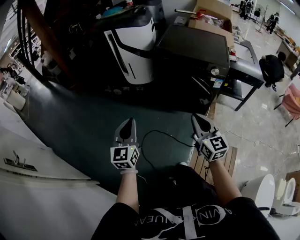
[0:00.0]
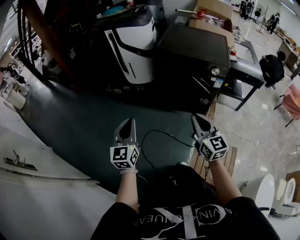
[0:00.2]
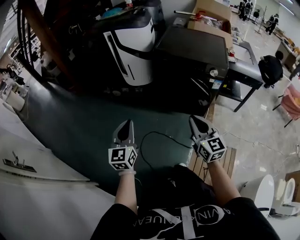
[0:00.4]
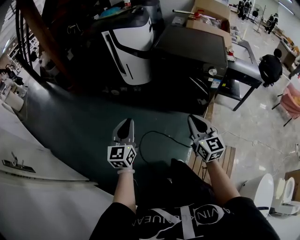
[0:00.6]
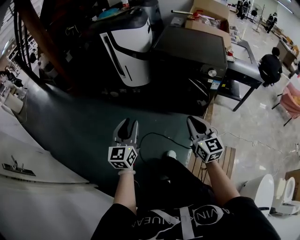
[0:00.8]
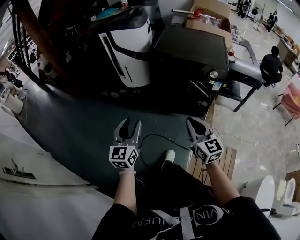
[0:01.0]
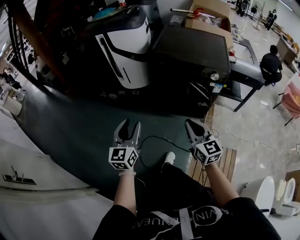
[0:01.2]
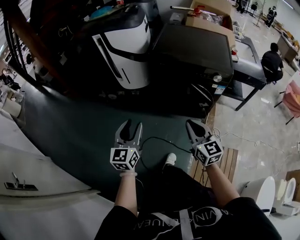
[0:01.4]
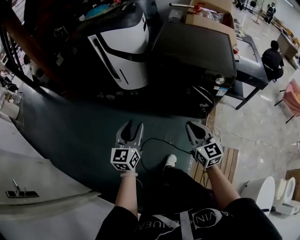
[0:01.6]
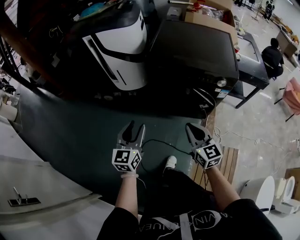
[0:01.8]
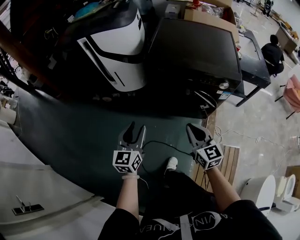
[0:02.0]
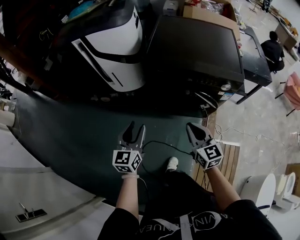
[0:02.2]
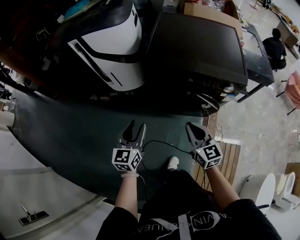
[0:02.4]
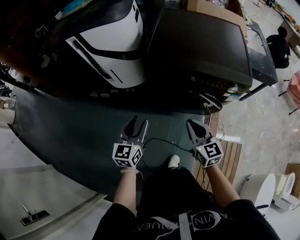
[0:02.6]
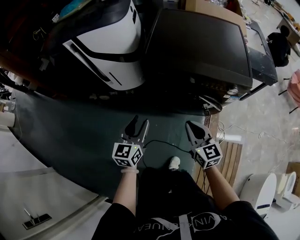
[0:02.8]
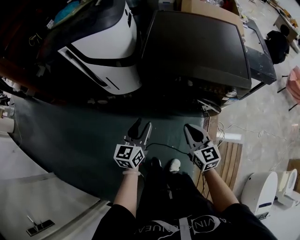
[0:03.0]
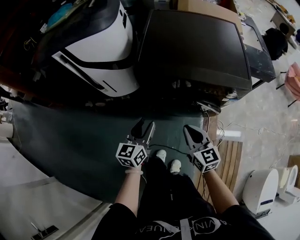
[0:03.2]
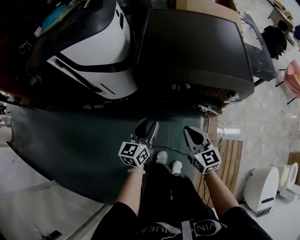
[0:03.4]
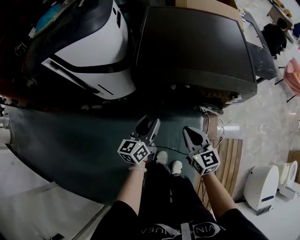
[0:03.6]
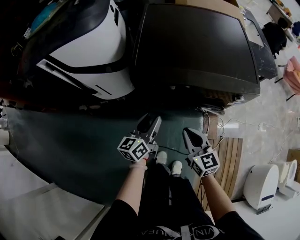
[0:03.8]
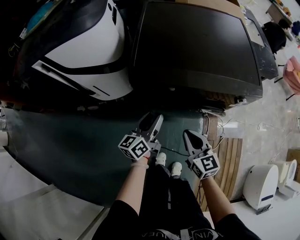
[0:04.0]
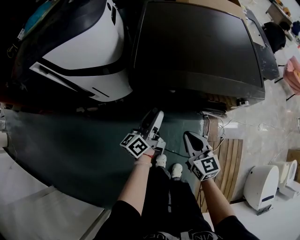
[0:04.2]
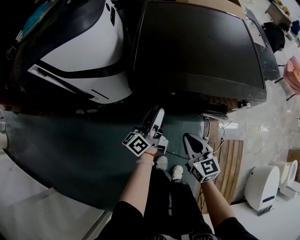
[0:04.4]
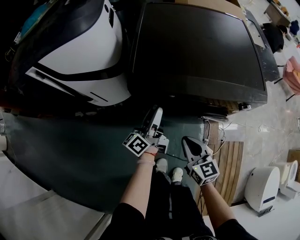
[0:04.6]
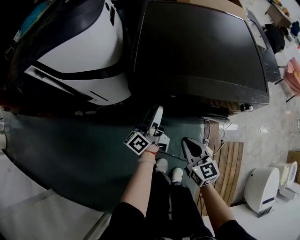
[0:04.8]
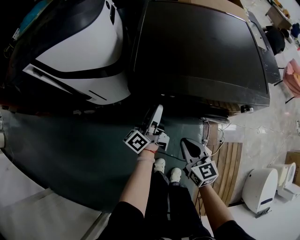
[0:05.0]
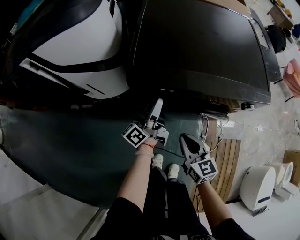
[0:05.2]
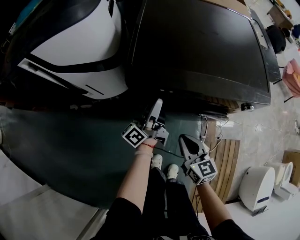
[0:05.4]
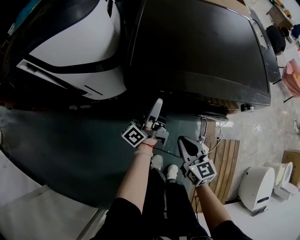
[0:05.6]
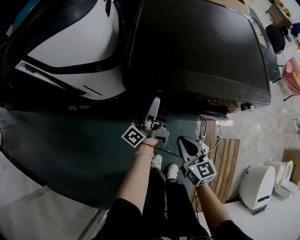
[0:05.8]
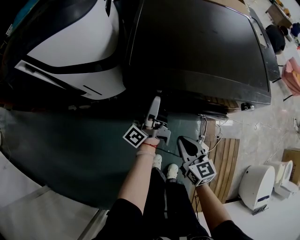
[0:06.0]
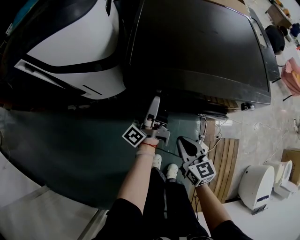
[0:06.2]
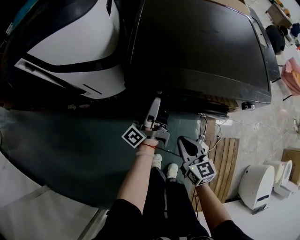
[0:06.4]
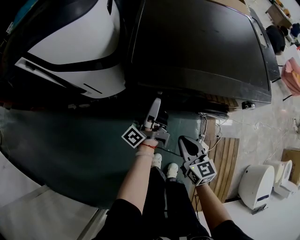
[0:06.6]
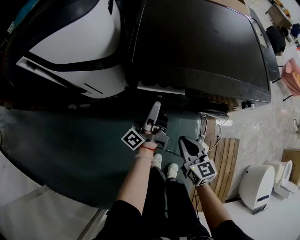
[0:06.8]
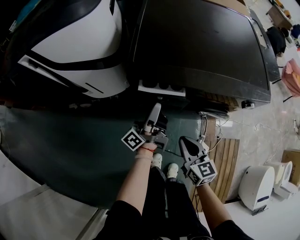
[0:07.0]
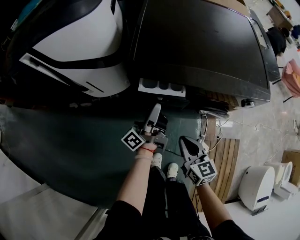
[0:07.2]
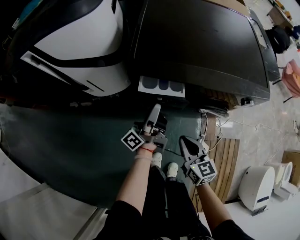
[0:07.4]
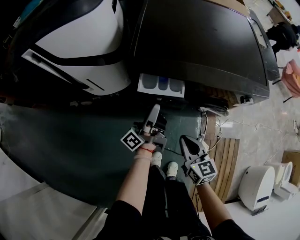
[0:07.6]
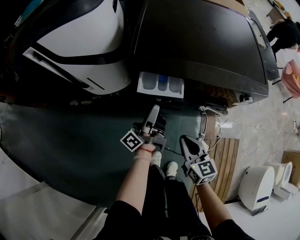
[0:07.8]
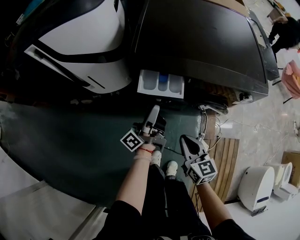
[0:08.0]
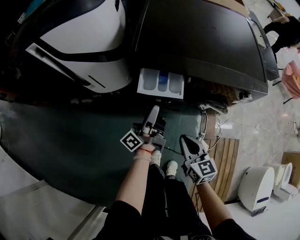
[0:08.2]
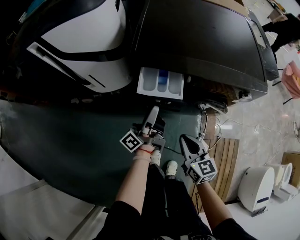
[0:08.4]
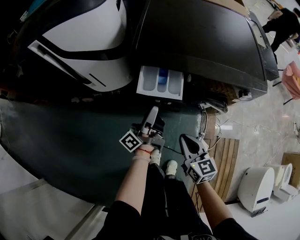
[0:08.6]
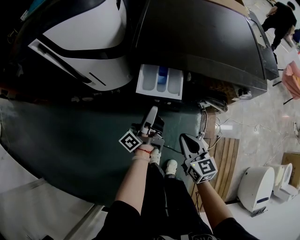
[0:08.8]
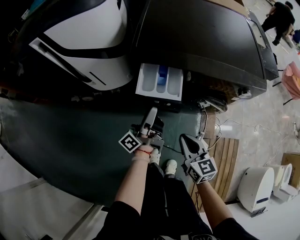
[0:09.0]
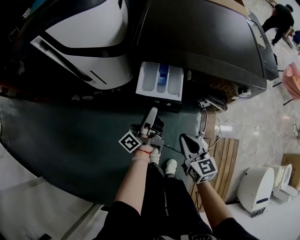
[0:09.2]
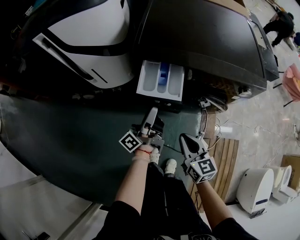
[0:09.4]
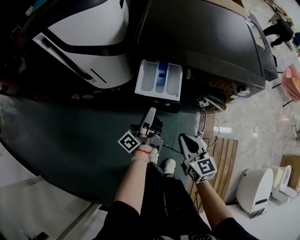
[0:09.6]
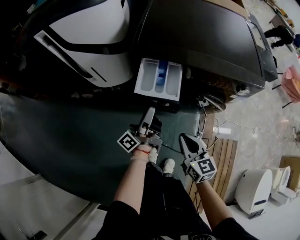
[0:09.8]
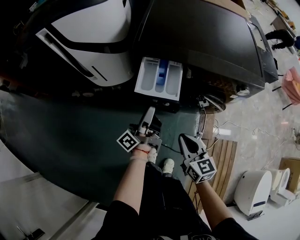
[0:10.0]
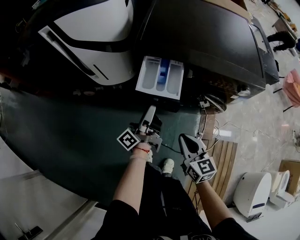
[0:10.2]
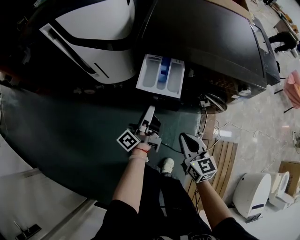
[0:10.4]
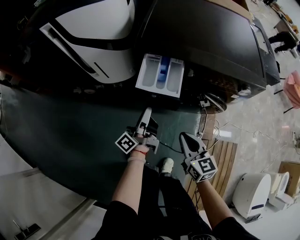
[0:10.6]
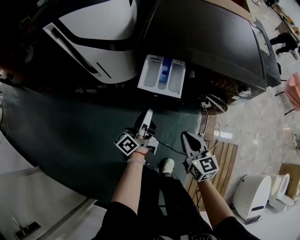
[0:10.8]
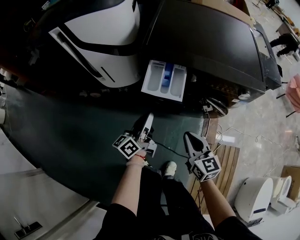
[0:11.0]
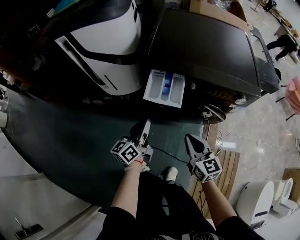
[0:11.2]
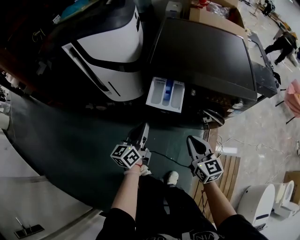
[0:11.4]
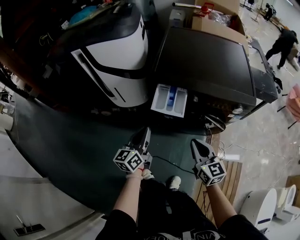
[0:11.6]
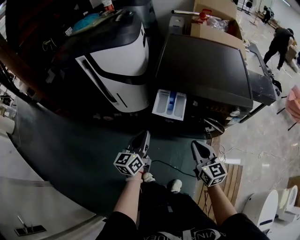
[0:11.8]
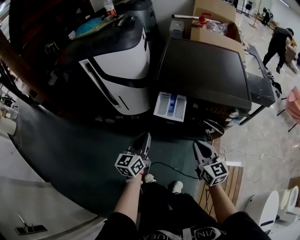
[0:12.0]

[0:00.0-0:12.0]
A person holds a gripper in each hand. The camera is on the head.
0:00.0 to 0:01.6: The left gripper travels forward by approximately 15 cm, and opens, while the right gripper travels forward and downward by approximately 15 cm.
0:01.6 to 0:03.0: The left gripper moves forward, some 20 cm. The right gripper shifts some 20 cm forward and downward.
0:03.0 to 0:04.4: The right gripper travels downward and forward by some 10 cm. Meanwhile the left gripper goes roughly 20 cm forward and downward, and twists some 40 degrees counterclockwise, seen from behind.
0:04.4 to 0:06.0: The left gripper turns by some 30 degrees.
0:06.0 to 0:07.6: The left gripper shifts some 5 cm backward.
0:07.6 to 0:09.0: The left gripper goes some 5 cm backward.
0:09.0 to 0:10.4: The grippers move only a little.
0:10.4 to 0:12.0: The right gripper is displaced upward by approximately 15 cm. The left gripper heads upward, to the left and backward, covering approximately 15 cm, and twists about 50 degrees clockwise, seen from behind.

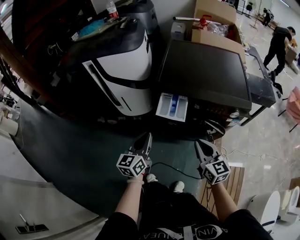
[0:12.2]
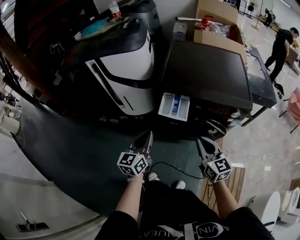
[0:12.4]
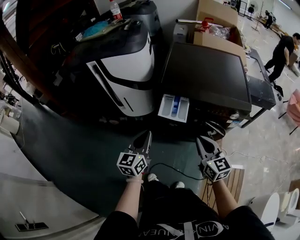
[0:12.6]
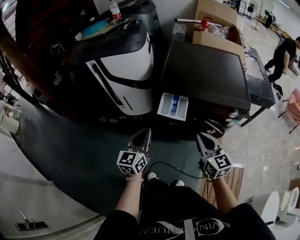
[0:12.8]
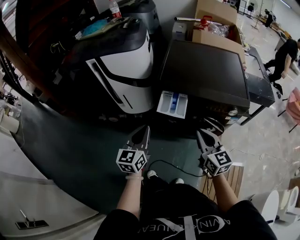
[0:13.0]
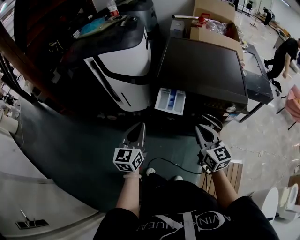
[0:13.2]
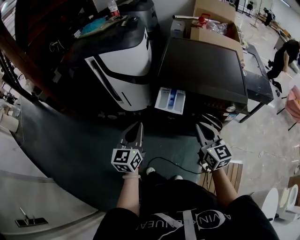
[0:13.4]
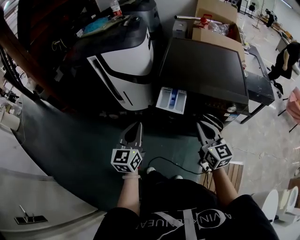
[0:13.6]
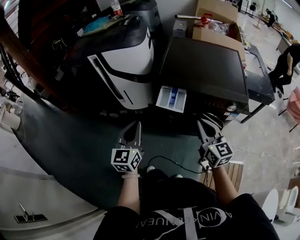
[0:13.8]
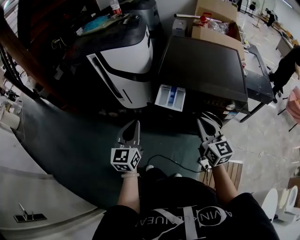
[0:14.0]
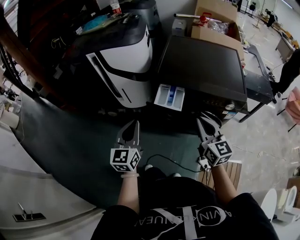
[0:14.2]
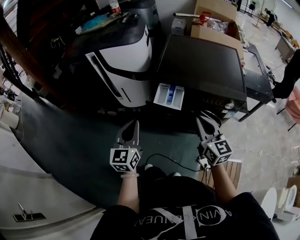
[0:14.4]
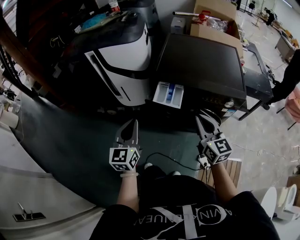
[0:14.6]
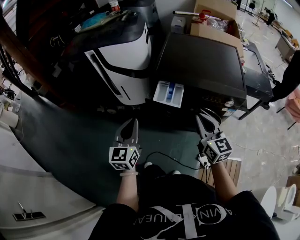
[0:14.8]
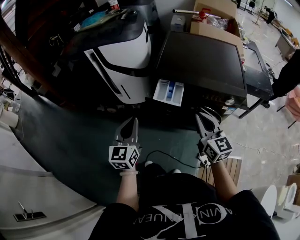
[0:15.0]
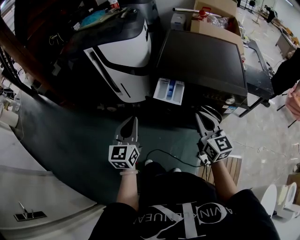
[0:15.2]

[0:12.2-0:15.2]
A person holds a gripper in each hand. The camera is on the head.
0:12.2 to 0:13.8: The grippers both shift upward by about 5 cm.
0:13.8 to 0:15.2: Neither gripper changes place.

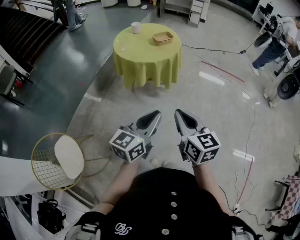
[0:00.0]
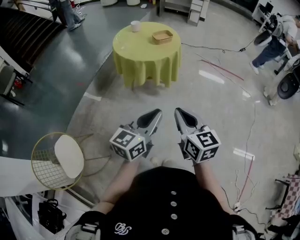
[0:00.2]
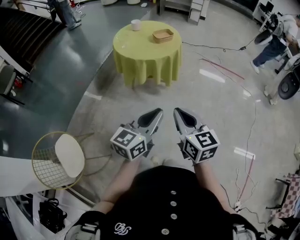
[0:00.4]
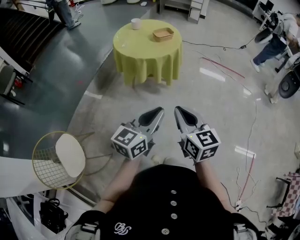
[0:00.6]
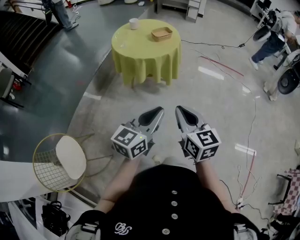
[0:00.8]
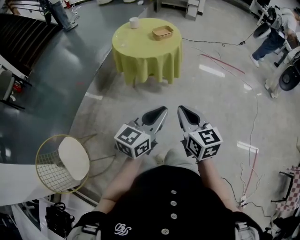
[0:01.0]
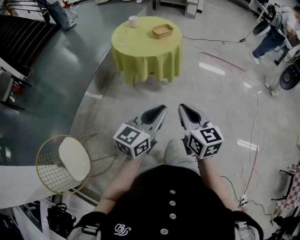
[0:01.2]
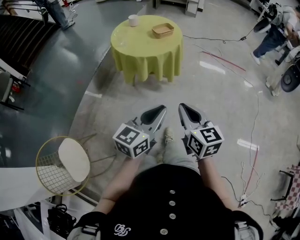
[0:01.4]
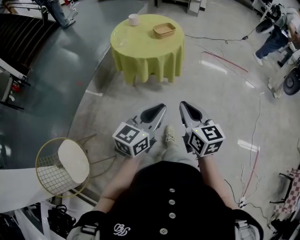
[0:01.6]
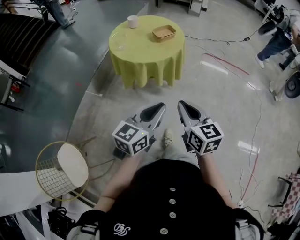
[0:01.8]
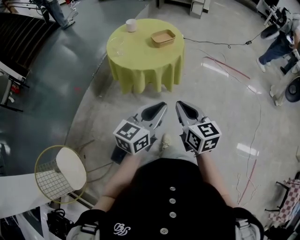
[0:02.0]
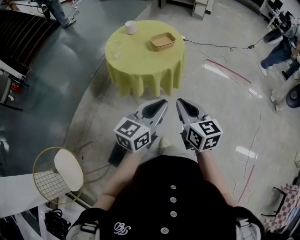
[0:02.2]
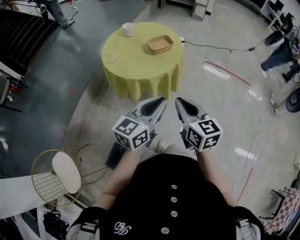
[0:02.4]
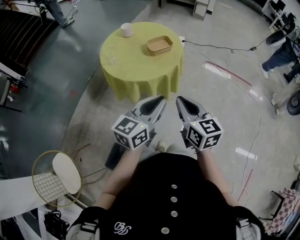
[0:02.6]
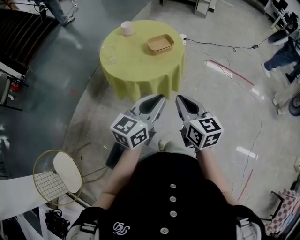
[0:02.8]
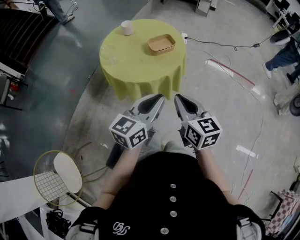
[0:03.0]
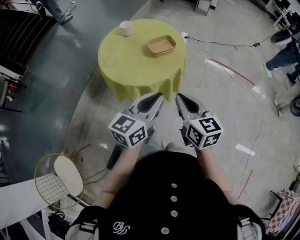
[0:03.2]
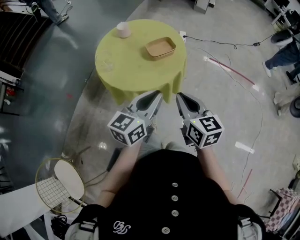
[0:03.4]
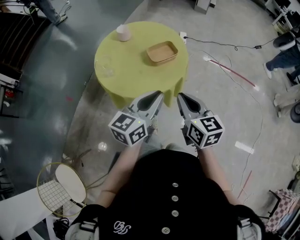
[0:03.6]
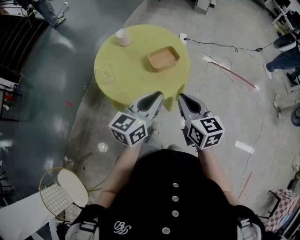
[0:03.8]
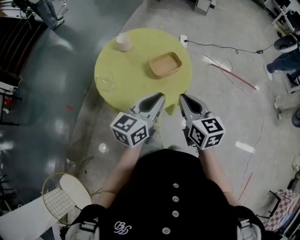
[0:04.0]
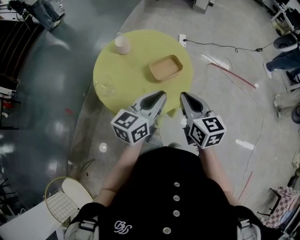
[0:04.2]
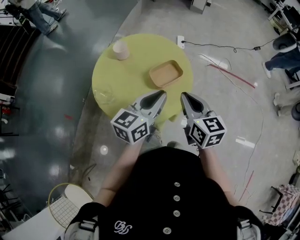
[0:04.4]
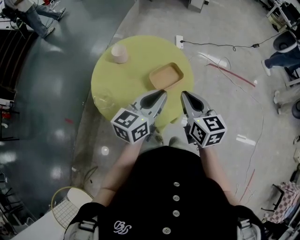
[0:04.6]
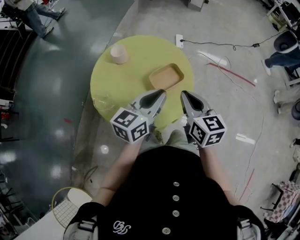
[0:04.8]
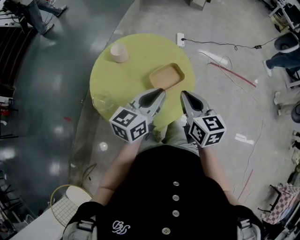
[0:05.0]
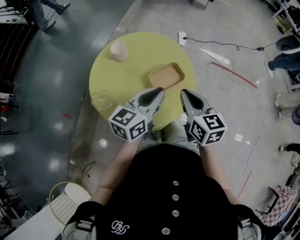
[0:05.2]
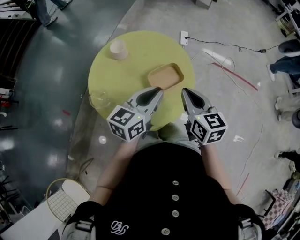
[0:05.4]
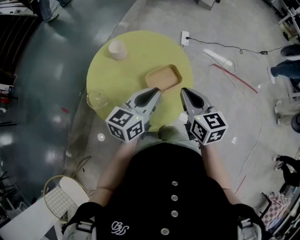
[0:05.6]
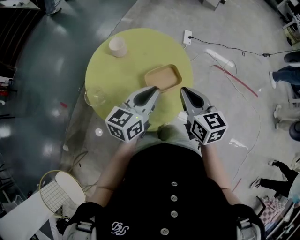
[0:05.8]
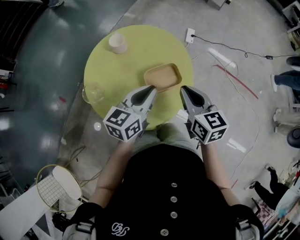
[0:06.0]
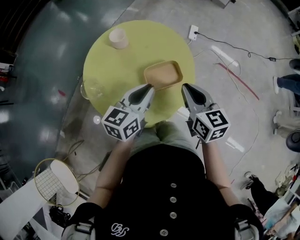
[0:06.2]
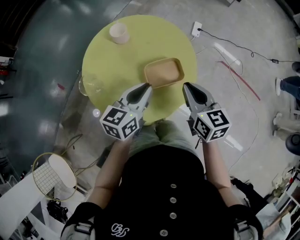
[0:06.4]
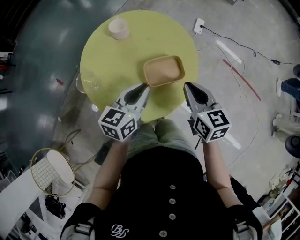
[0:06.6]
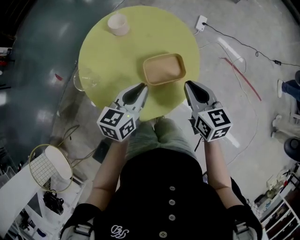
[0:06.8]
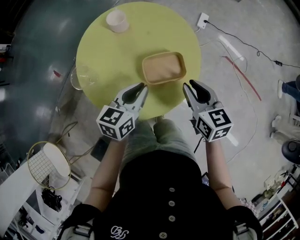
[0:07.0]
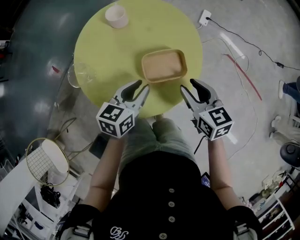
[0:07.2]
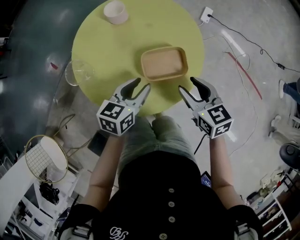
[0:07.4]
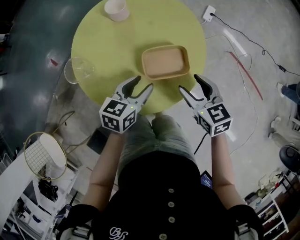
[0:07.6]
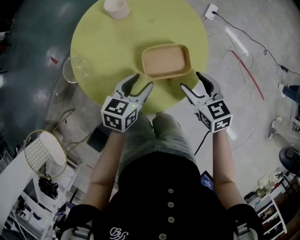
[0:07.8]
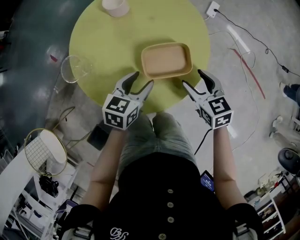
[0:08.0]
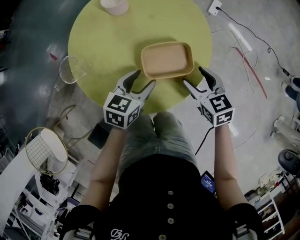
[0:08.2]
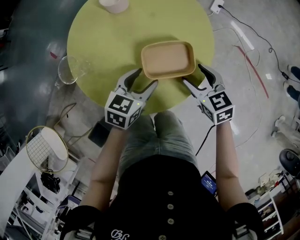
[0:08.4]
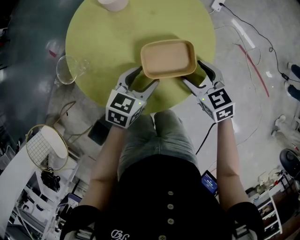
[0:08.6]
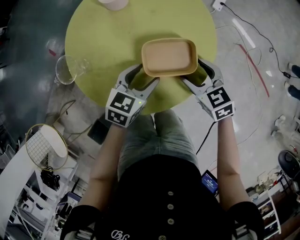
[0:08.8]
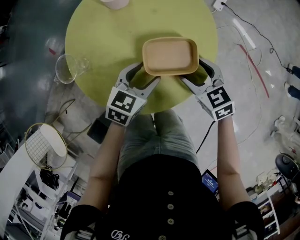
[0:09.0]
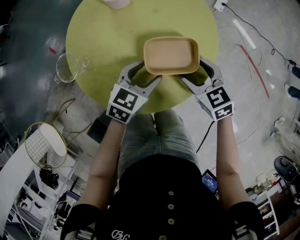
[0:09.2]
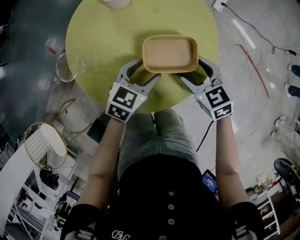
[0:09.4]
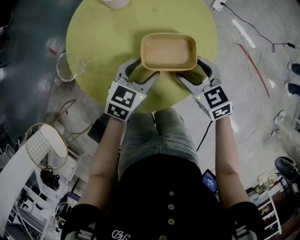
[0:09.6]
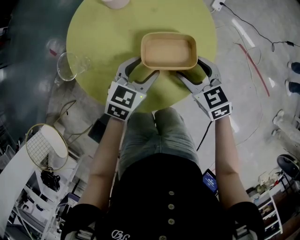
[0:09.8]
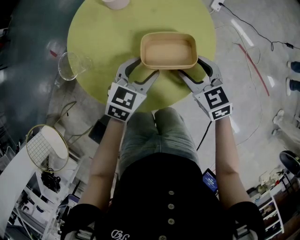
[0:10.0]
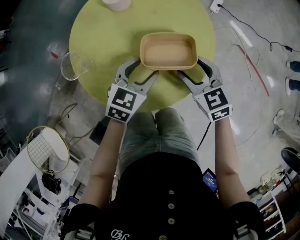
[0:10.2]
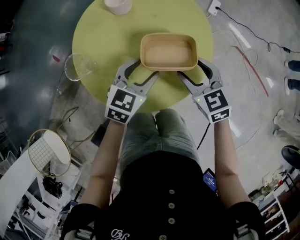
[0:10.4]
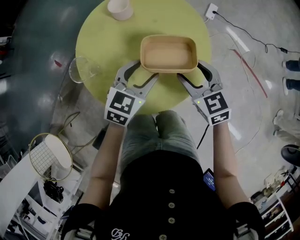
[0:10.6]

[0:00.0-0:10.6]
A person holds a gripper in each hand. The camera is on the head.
0:00.0 to 0:01.6: The two grippers go roughly 5 cm forward.
0:01.6 to 0:03.0: Both grippers travel together forward, about 25 cm.
0:03.0 to 0:04.6: Both grippers travel together forward, approximately 25 cm.
0:04.6 to 0:06.0: The right gripper shifts roughly 5 cm forward. Meanwhile the left gripper ends up some 5 cm from where it was.
0:06.0 to 0:07.6: The grippers both shift downward by some 10 cm. The right gripper turns by roughly 30 degrees, and opens up. The left gripper rotates some 20 degrees, and opens.
0:07.6 to 0:09.0: The right gripper shifts about 5 cm downward.
0:09.0 to 0:10.6: Both grippers move upward, roughly 5 cm.
